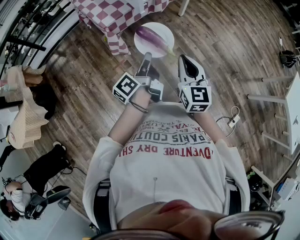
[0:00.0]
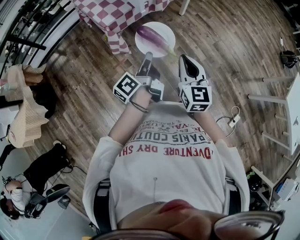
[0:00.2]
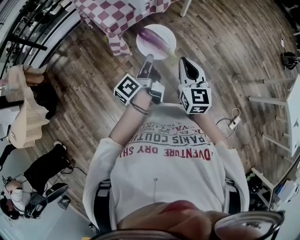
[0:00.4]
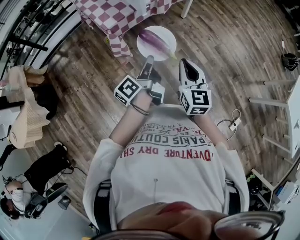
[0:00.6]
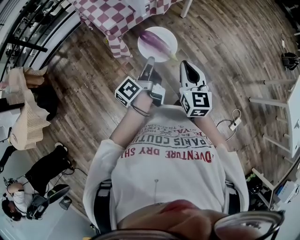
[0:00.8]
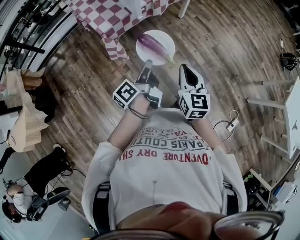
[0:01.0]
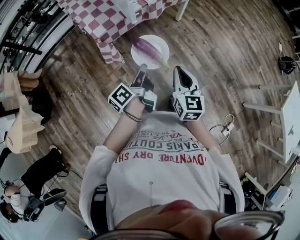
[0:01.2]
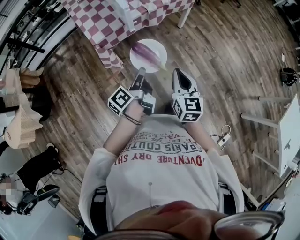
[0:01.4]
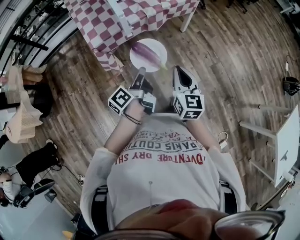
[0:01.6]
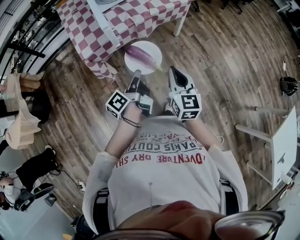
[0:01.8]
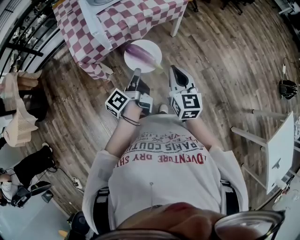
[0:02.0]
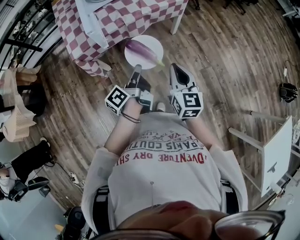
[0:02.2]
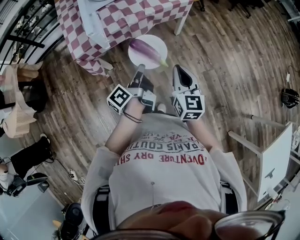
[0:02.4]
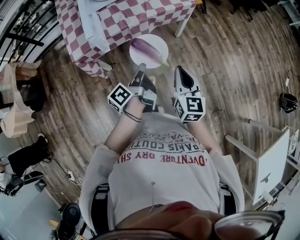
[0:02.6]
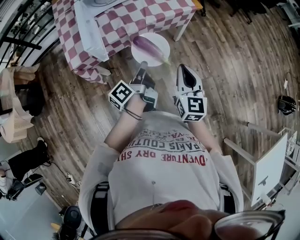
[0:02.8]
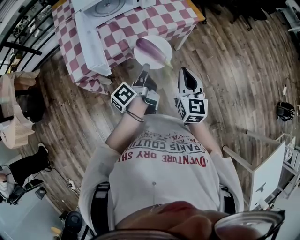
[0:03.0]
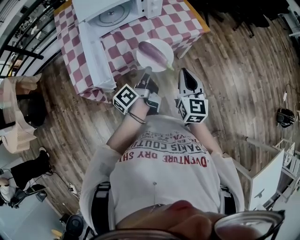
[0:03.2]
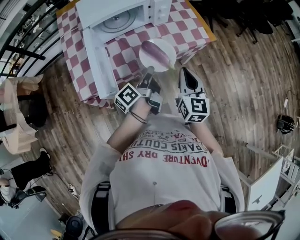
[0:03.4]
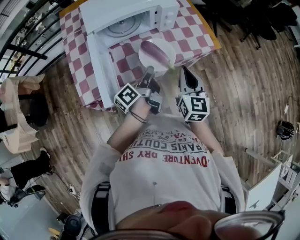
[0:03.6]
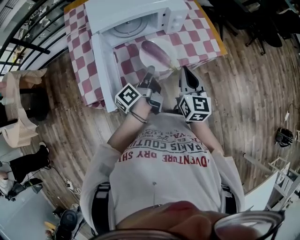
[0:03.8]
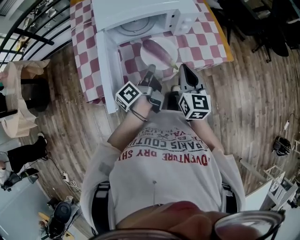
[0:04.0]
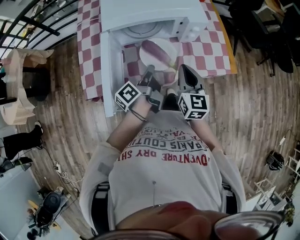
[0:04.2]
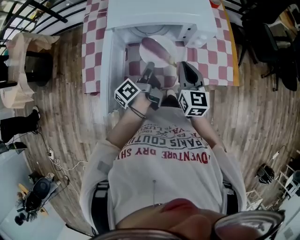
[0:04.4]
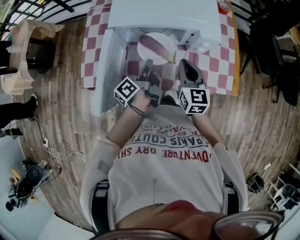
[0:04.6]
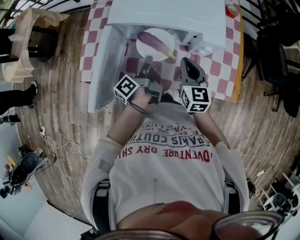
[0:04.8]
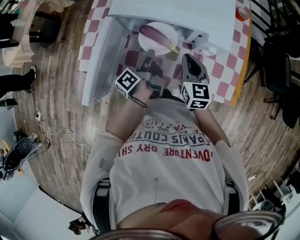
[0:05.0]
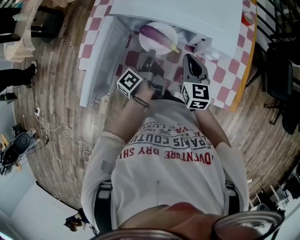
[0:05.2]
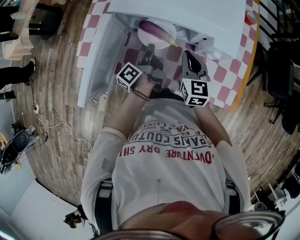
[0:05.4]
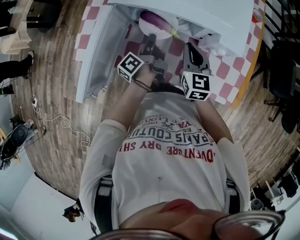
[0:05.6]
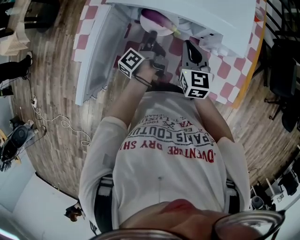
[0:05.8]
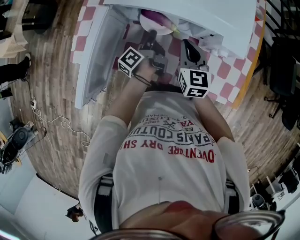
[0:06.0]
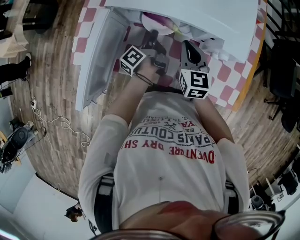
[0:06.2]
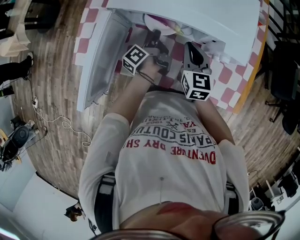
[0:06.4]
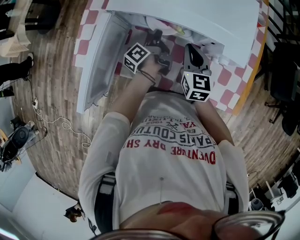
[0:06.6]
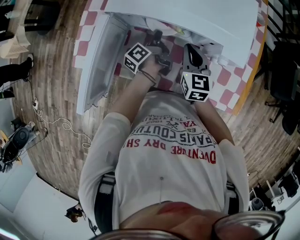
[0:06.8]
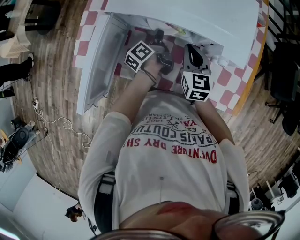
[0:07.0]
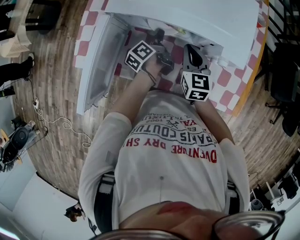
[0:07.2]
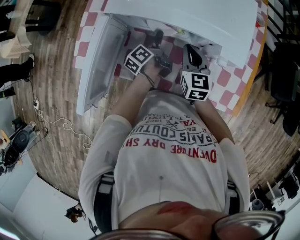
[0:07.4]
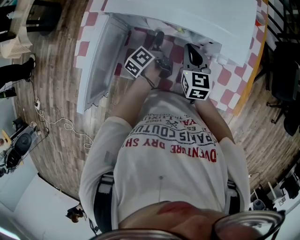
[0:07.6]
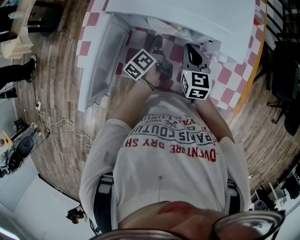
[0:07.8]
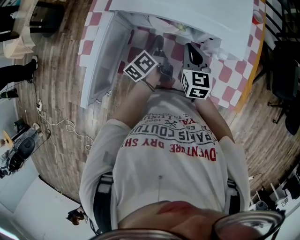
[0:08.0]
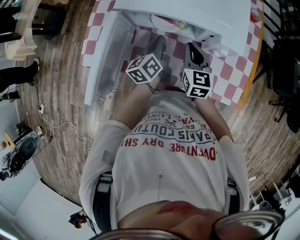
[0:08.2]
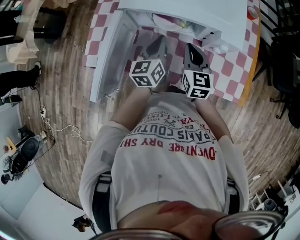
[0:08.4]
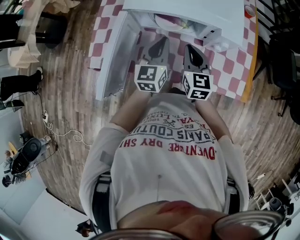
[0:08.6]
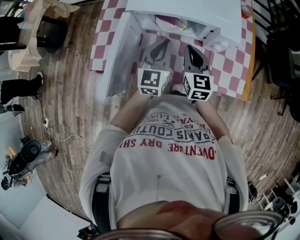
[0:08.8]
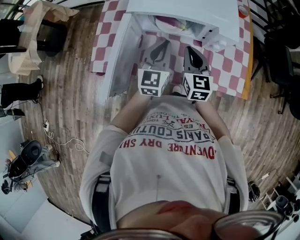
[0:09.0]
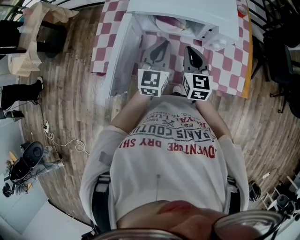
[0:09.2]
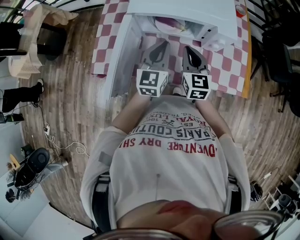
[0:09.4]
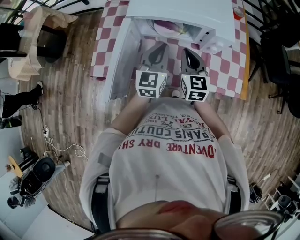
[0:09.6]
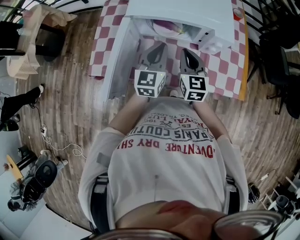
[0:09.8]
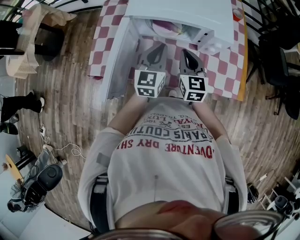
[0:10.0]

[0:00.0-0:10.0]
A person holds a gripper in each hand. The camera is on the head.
0:00.0 to 0:01.4: The right gripper ends up roughly 15 cm from where it was.
0:01.4 to 0:02.8: The right gripper moves about 35 cm.
0:02.8 to 0:04.2: The right gripper moves roughly 40 cm.
0:04.2 to 0:05.8: The right gripper changes place by approximately 20 cm, and swivels roughly 30 degrees.
0:07.2 to 0:08.6: The right gripper moves upward, approximately 10 cm.

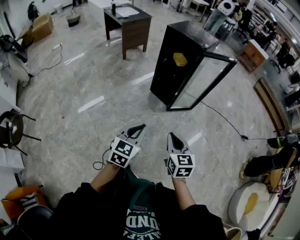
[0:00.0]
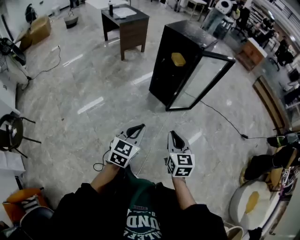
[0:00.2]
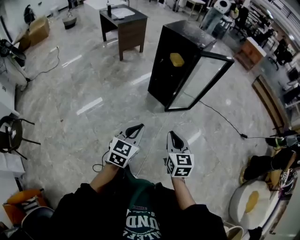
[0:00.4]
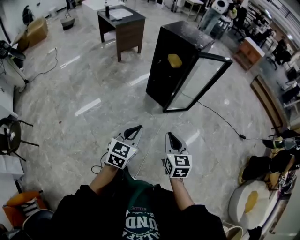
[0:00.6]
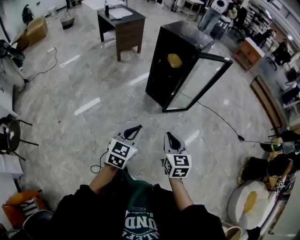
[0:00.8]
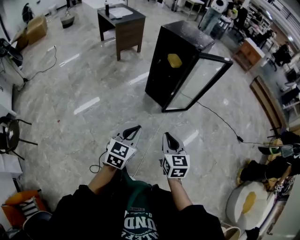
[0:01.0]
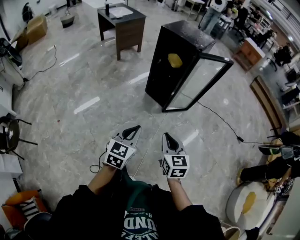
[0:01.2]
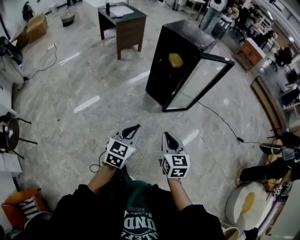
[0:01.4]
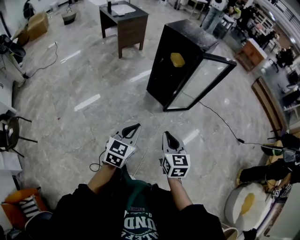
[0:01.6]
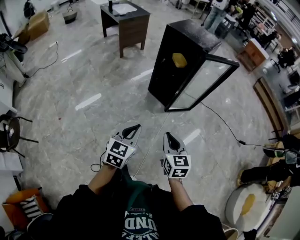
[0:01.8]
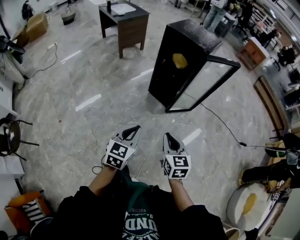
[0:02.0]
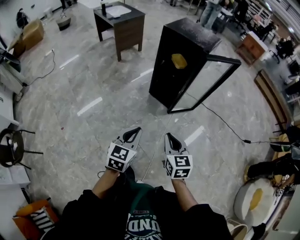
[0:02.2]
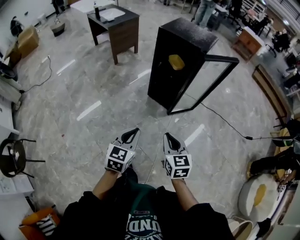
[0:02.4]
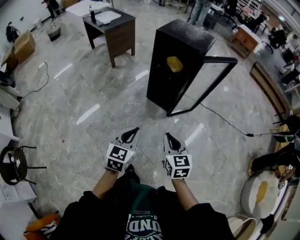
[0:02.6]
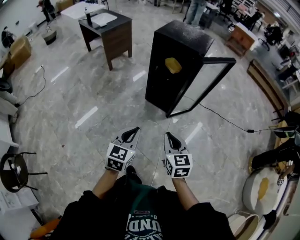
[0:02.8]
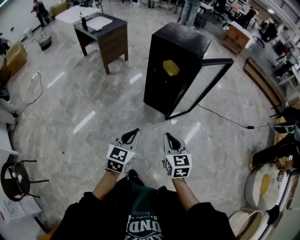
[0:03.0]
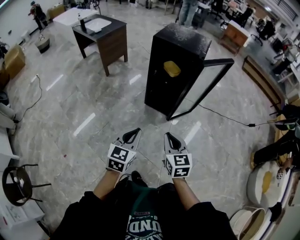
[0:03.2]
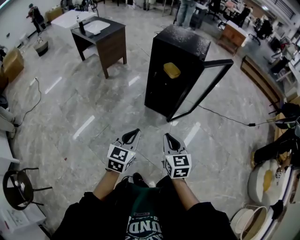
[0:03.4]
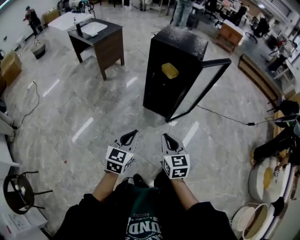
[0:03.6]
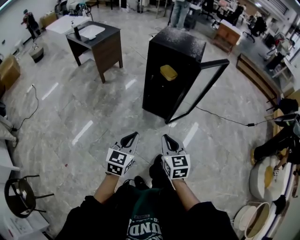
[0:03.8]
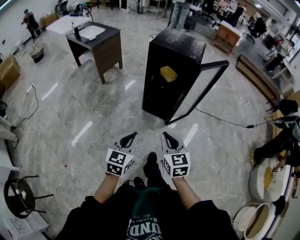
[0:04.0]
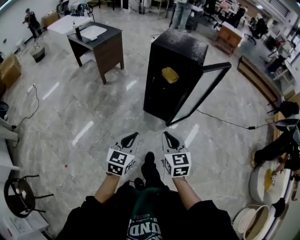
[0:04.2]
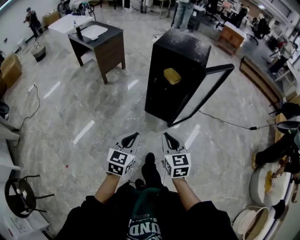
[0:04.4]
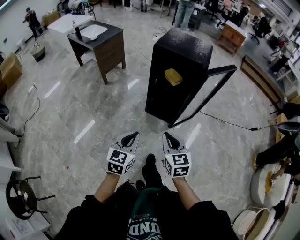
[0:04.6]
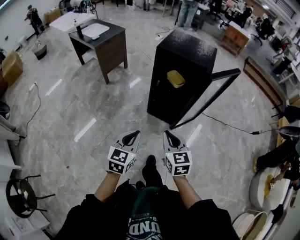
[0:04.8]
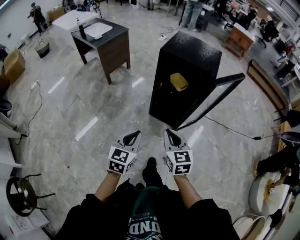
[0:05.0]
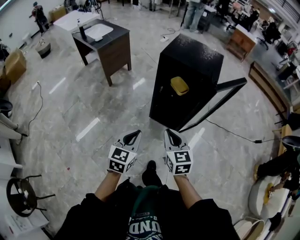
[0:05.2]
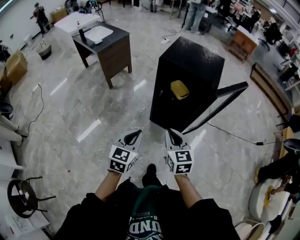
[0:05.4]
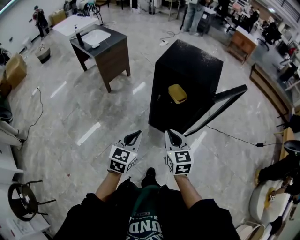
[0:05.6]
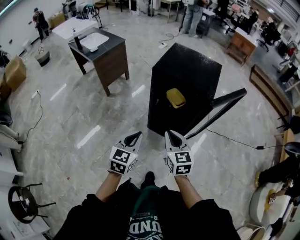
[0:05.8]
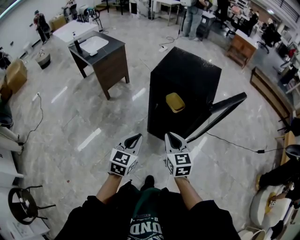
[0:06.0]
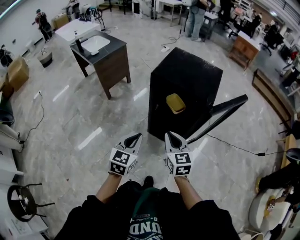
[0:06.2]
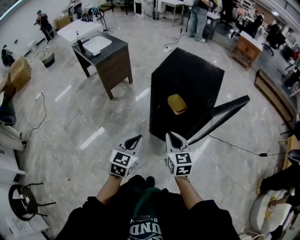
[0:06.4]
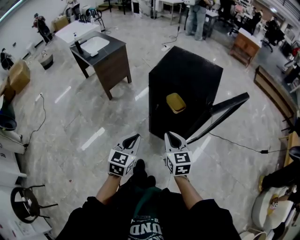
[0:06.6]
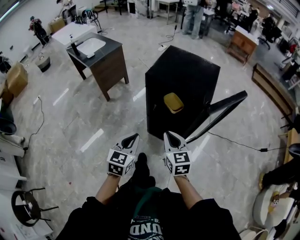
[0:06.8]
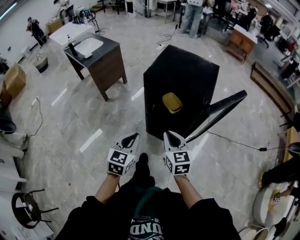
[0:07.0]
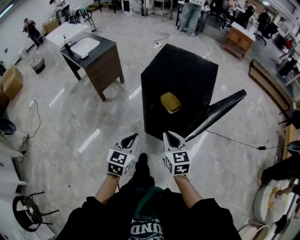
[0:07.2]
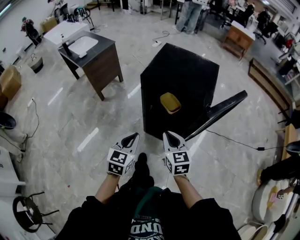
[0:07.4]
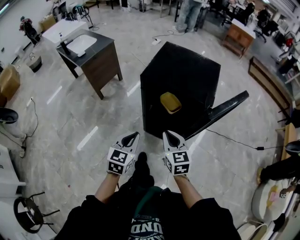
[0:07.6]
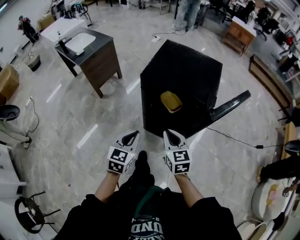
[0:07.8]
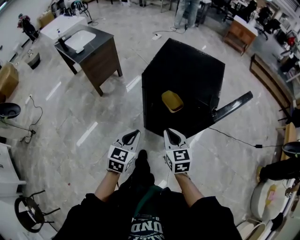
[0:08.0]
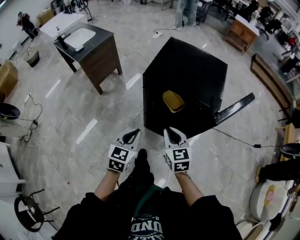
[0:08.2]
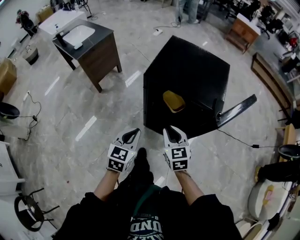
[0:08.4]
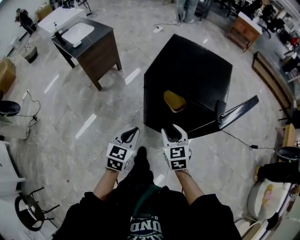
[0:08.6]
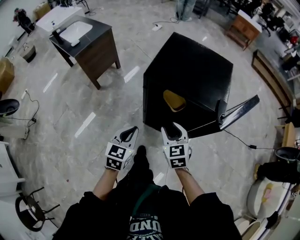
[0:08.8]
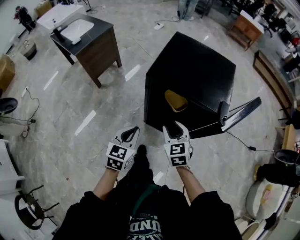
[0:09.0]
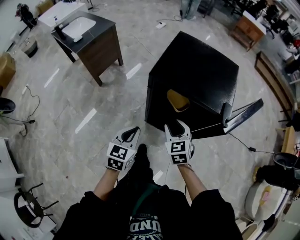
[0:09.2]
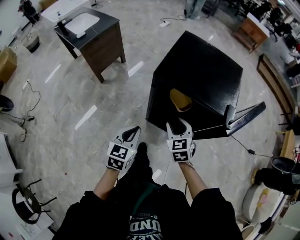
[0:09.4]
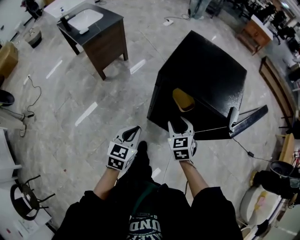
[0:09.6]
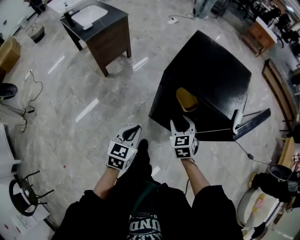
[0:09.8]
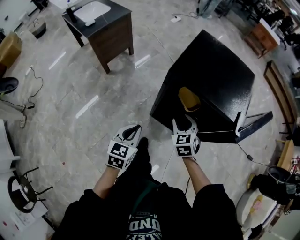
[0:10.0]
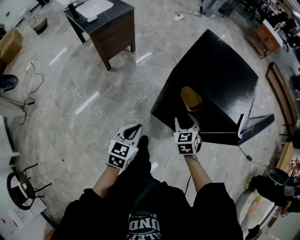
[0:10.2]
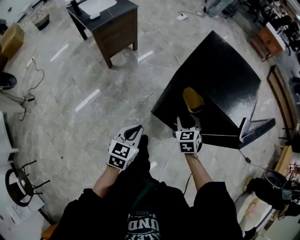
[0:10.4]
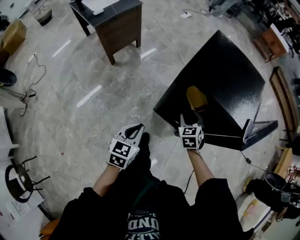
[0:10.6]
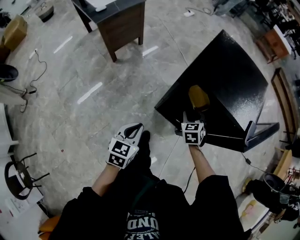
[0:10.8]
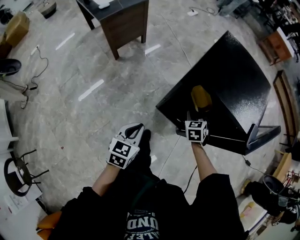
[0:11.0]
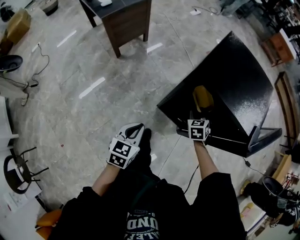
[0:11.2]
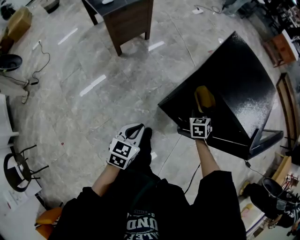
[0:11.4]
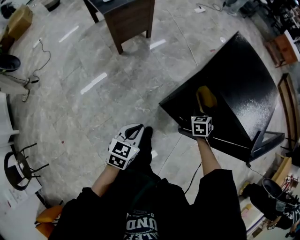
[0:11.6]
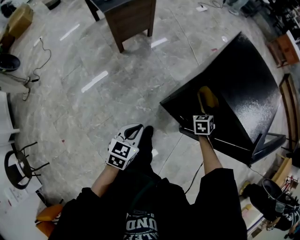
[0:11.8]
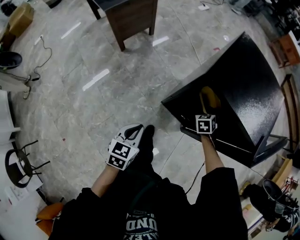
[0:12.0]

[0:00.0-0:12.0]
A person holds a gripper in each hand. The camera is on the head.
0:00.0 to 0:01.6: Both grippers move forward, roughly 5 cm.
0:01.6 to 0:03.0: Both grippers travel together forward and to the left, about 15 cm.
0:03.0 to 0:04.4: The left gripper travels to the left by about 5 cm, while the right gripper is displaced to the left and forward by roughly 10 cm.
0:04.4 to 0:06.0: Both grippers move forward, approximately 25 cm.
0:06.0 to 0:07.6: Both grippers travel together forward, roughly 5 cm.
0:07.6 to 0:09.0: The left gripper travels forward by roughly 5 cm. Meanwhile the right gripper goes approximately 10 cm forward and downward, and opens its fingers.
0:09.0 to 0:10.4: The right gripper heads downward and forward, covering some 10 cm; the left gripper is displaced to the left by some 5 cm.
0:10.4 to 0:12.0: The left gripper moves downward, some 5 cm; the right gripper heads downward and forward, covering some 15 cm.

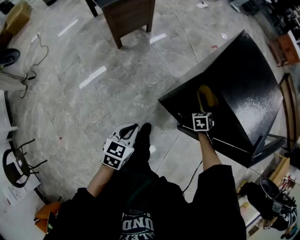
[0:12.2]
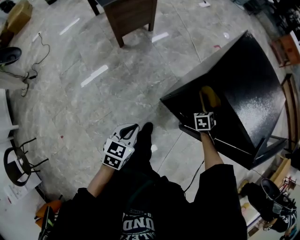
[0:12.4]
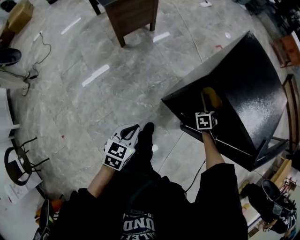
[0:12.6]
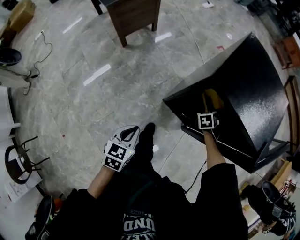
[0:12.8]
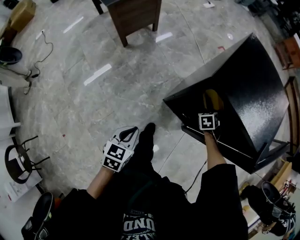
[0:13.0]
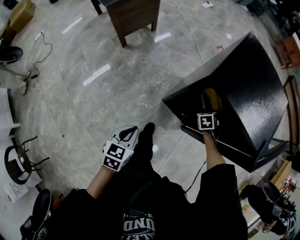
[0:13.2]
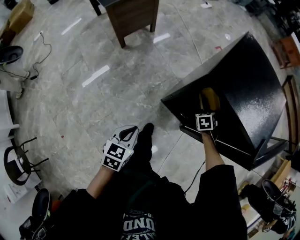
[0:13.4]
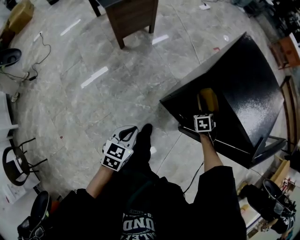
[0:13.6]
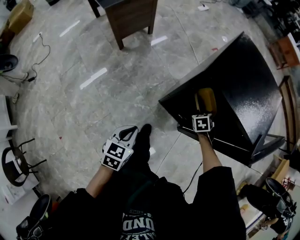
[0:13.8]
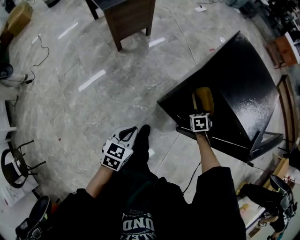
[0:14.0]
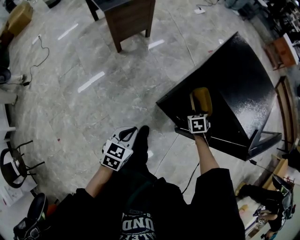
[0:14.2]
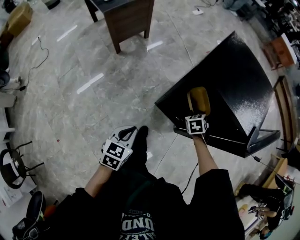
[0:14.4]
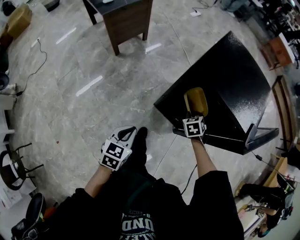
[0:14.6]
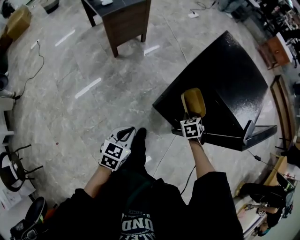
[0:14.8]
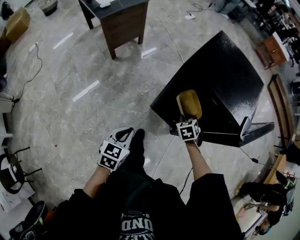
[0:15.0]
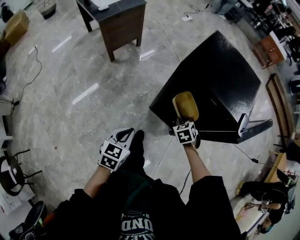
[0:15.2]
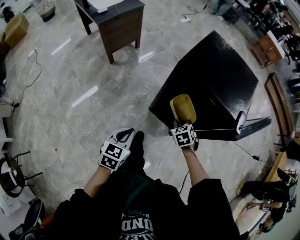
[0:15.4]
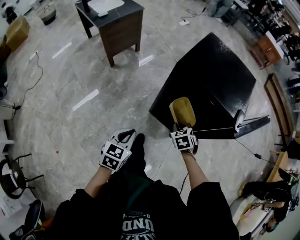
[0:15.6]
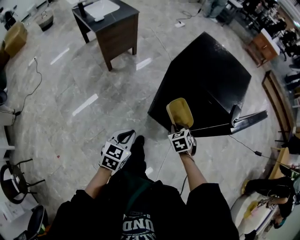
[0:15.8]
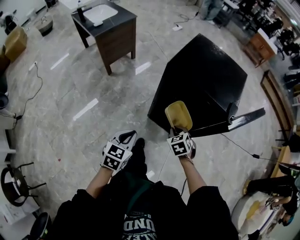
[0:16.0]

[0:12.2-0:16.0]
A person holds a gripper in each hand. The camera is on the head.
0:12.2 to 0:13.4: The right gripper closes its fingers.
0:13.4 to 0:14.8: The right gripper shifts approximately 10 cm backward and upward. Meanwhile the left gripper moves approximately 5 cm.
0:14.8 to 0:16.0: The right gripper goes roughly 15 cm backward and upward. Meanwhile the left gripper changes place by about 5 cm.
